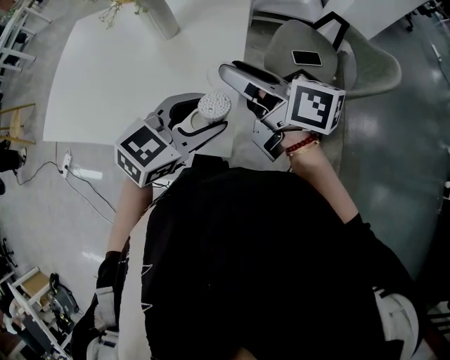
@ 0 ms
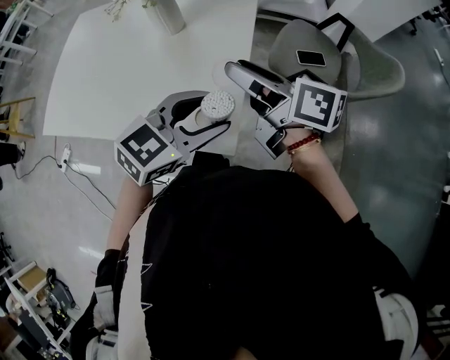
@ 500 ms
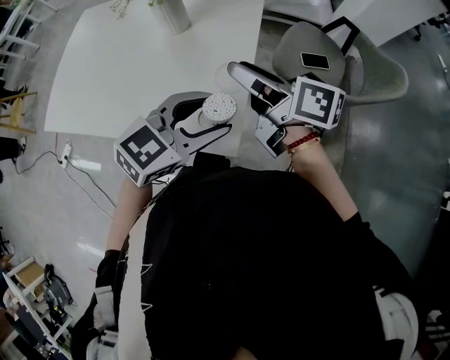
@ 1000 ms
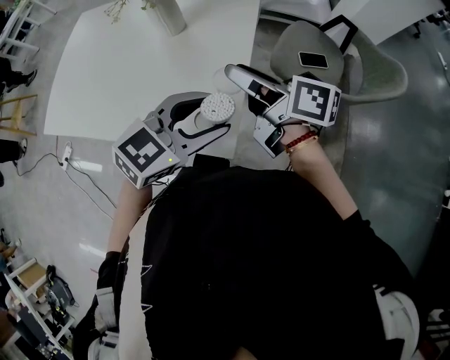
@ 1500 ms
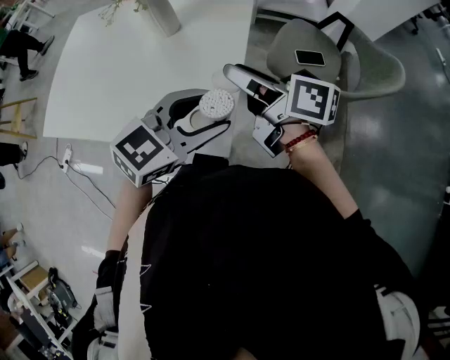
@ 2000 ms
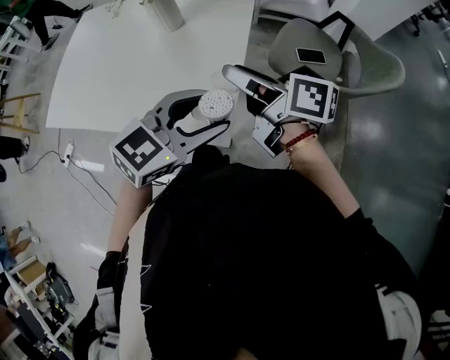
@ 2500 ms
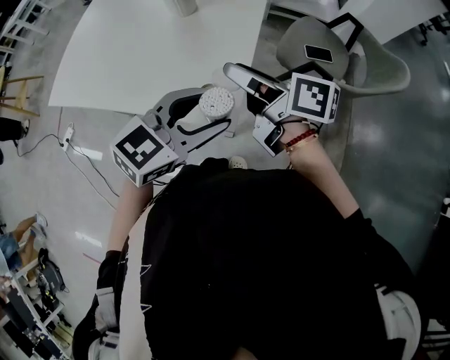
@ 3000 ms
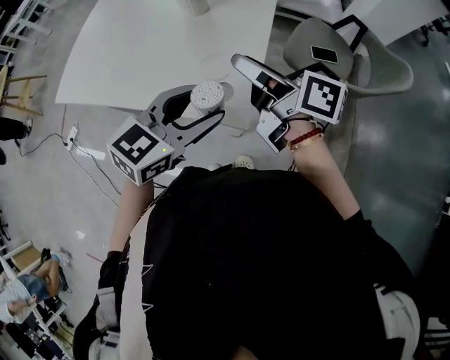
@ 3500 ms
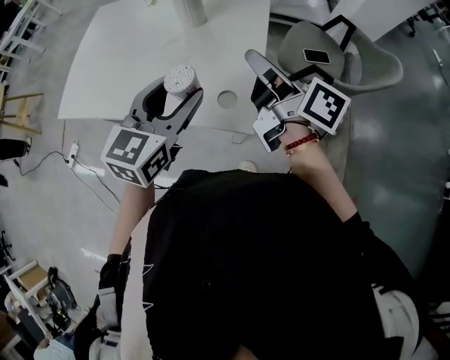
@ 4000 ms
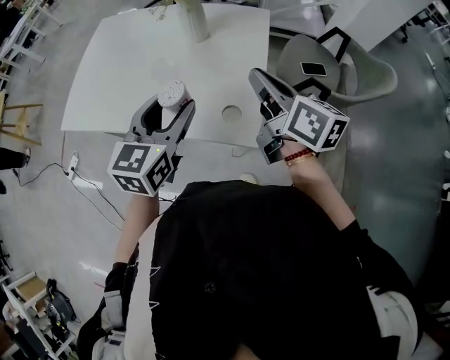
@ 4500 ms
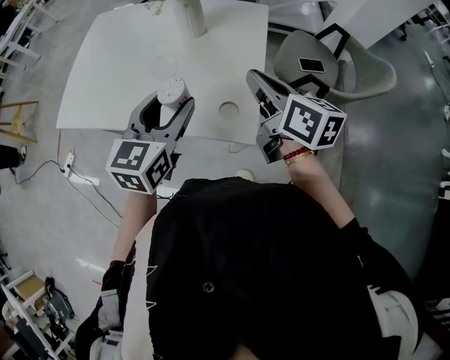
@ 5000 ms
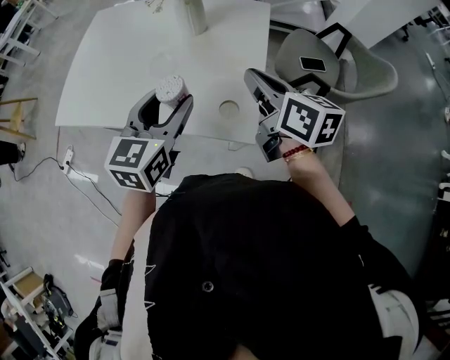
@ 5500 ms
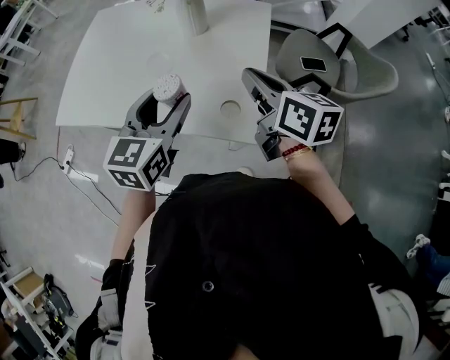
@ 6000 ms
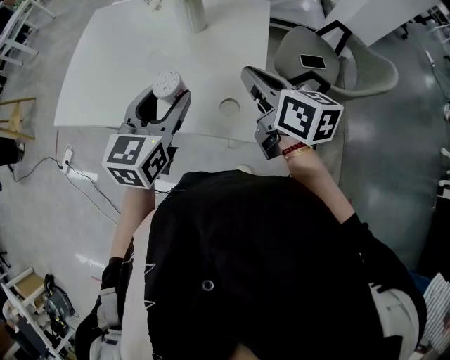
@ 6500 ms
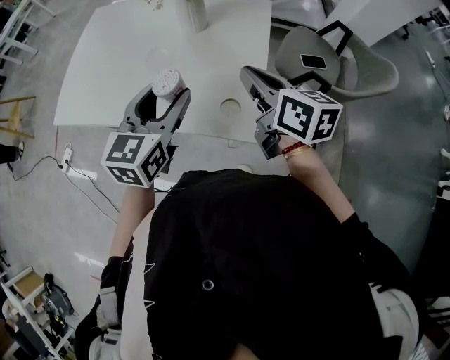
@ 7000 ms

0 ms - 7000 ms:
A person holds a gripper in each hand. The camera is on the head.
0 ms - 2000 ms: The grippers make only small movements.
2000 ms - 3500 ms: The left gripper moves to the left and backward, approximately 10 cm, while the right gripper heads backward, covering about 5 cm.
3500 ms - 5000 ms: The left gripper travels to the left and forward by roughly 10 cm, and rotates about 20 degrees. The right gripper turns by about 30 degrees, and closes up.
5000 ms - 7000 ms: The grippers move only a little.

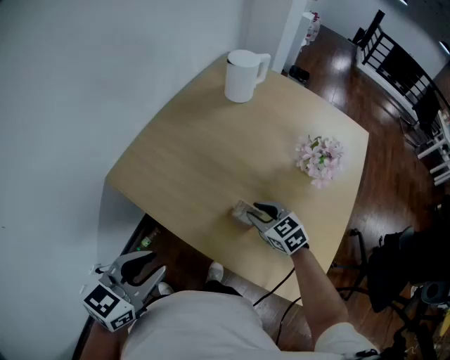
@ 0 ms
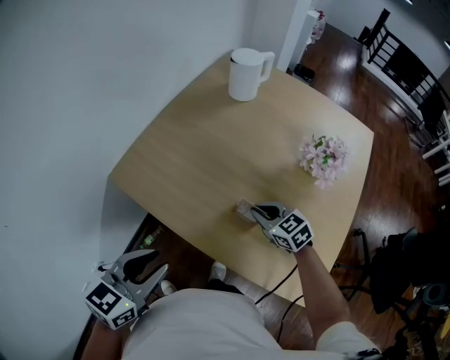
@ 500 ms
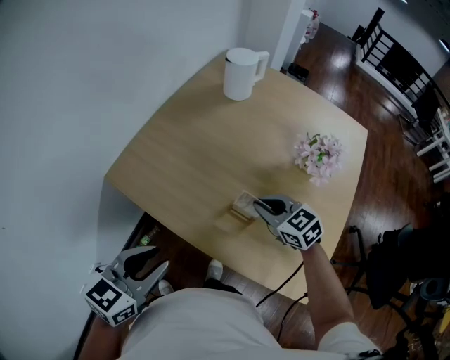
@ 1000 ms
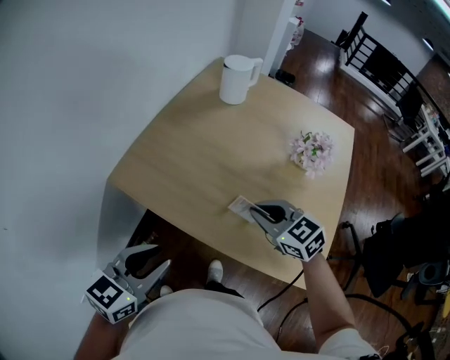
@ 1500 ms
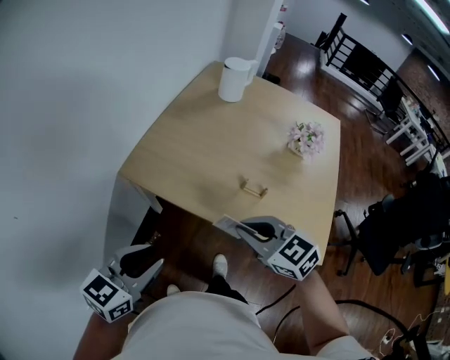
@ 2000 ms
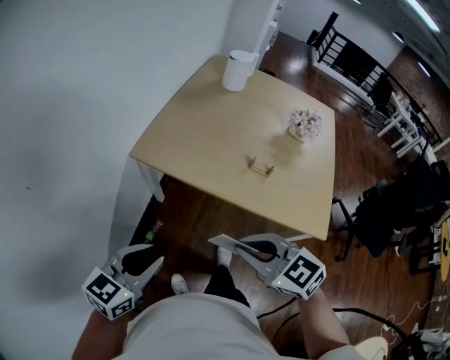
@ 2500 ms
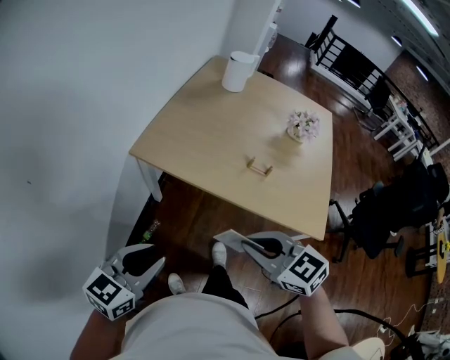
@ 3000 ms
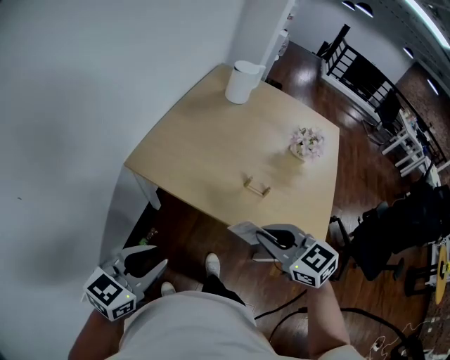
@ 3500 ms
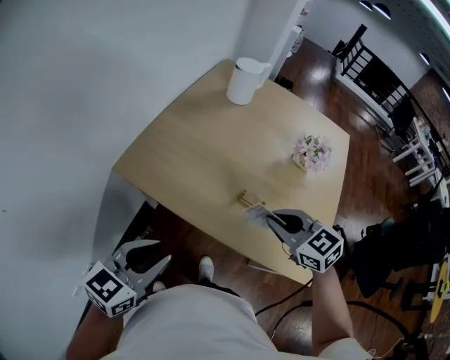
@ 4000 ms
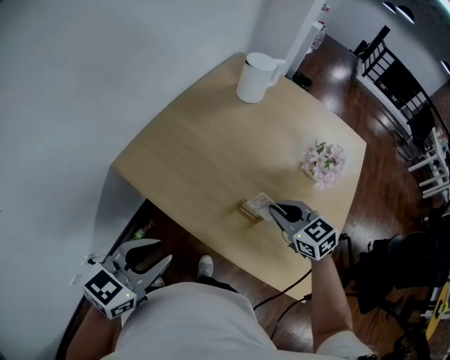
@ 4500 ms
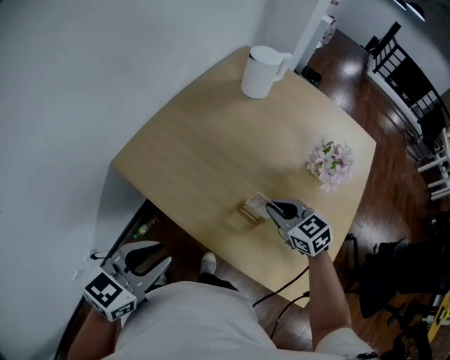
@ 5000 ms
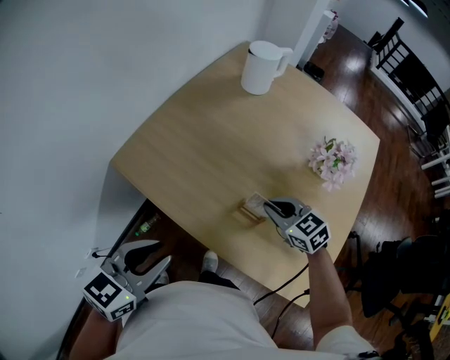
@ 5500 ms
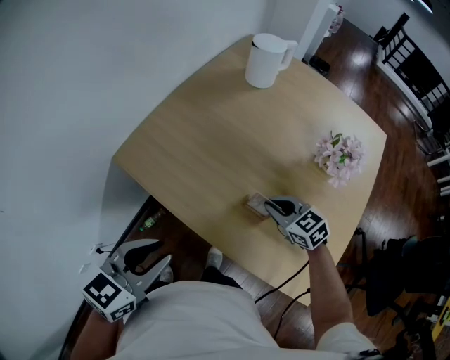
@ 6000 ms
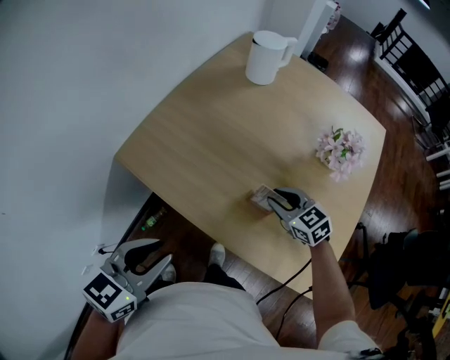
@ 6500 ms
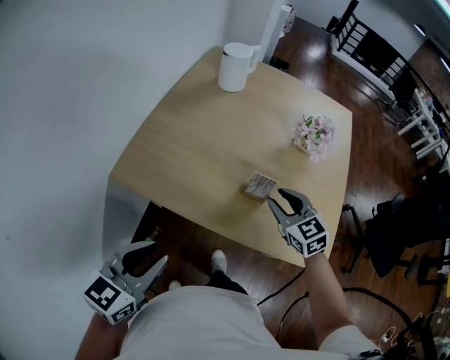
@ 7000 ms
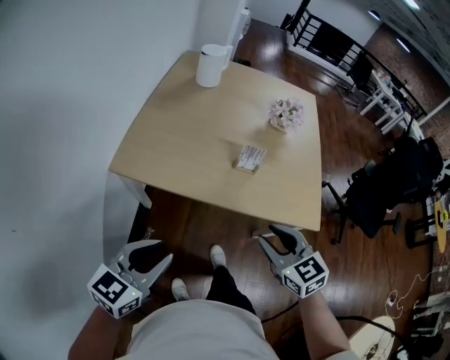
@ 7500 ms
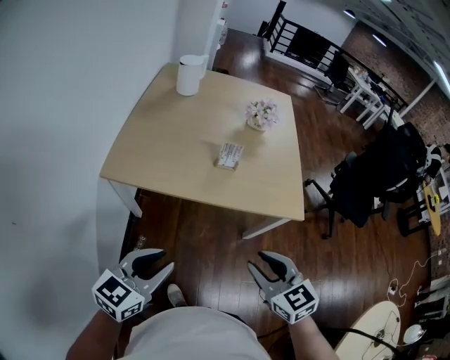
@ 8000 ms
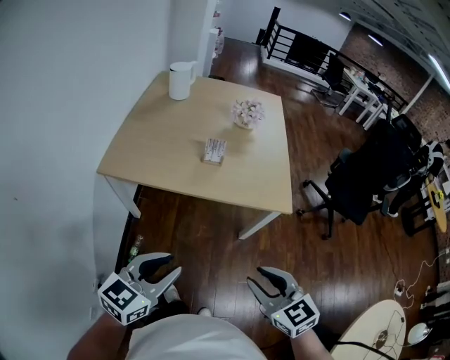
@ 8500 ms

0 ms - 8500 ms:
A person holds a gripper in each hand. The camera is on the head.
0 ms - 2000 ms: The right gripper shifts roughly 30 cm backward, upward and to the left, and closes up, while the left gripper is displaced to the left and backward by approximately 15 cm.
2000 ms - 4000 ms: The left gripper travels to the right by approximately 5 cm, while the right gripper is displaced to the right and forward by some 15 cm.
4000 ms - 6500 ms: The right gripper goes approximately 20 cm downward and forward. Meanwhile the left gripper ends up approximately 5 cm from where it was.
6500 ms - 8500 ms: The left gripper shifts by approximately 30 cm, and rotates some 30 degrees. Meanwhile the right gripper changes place by about 60 cm, and changes its angle by some 40 degrees.

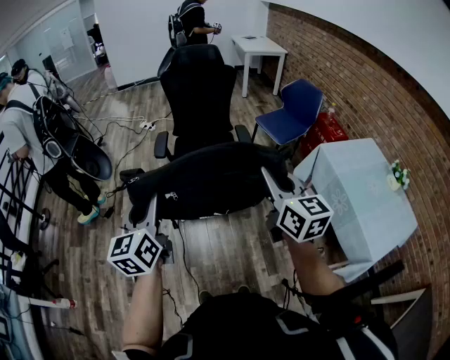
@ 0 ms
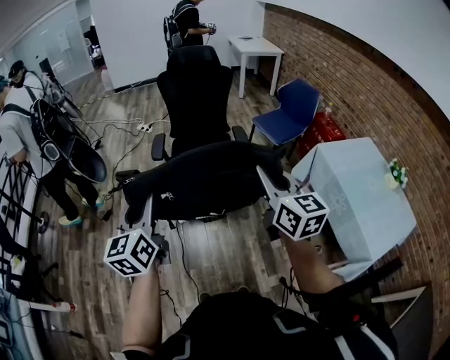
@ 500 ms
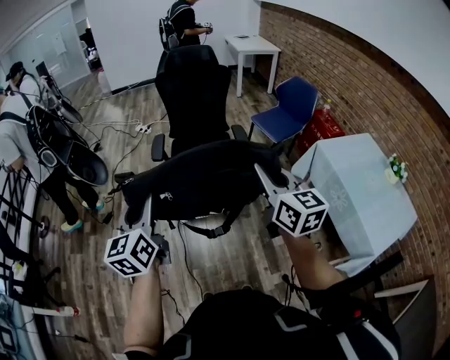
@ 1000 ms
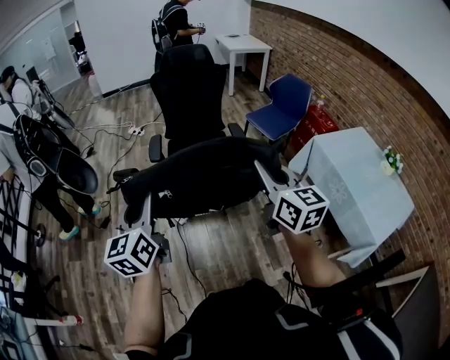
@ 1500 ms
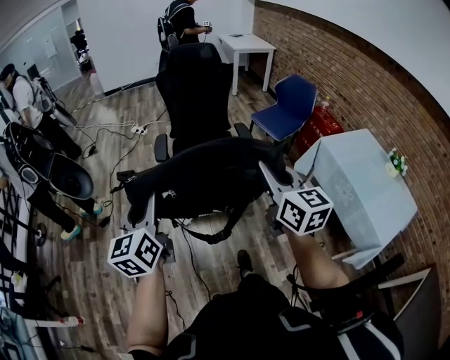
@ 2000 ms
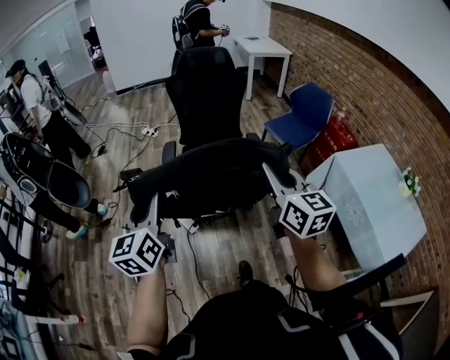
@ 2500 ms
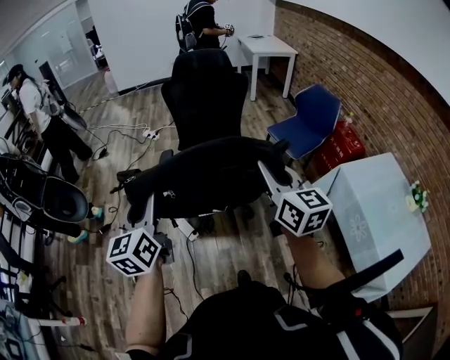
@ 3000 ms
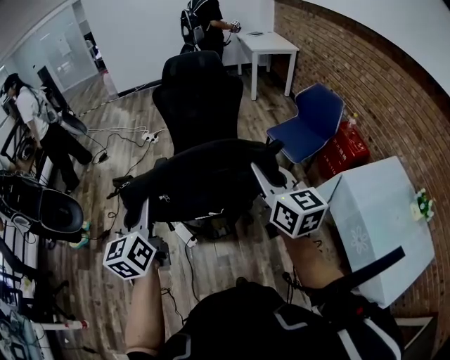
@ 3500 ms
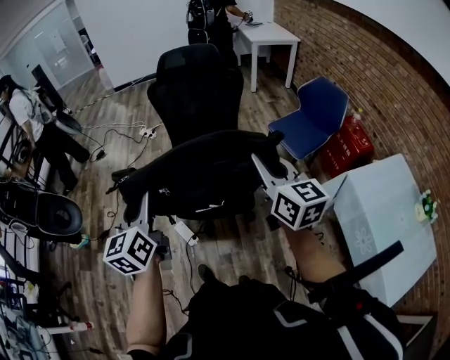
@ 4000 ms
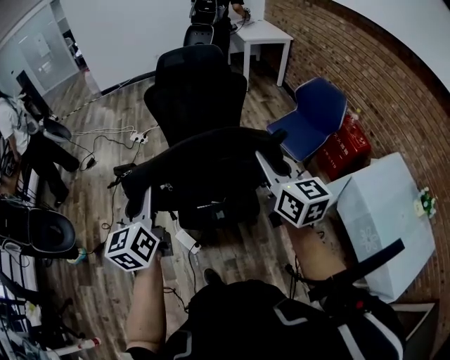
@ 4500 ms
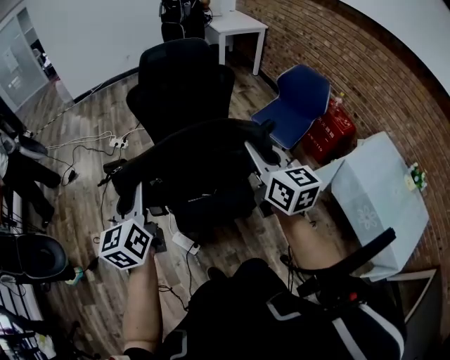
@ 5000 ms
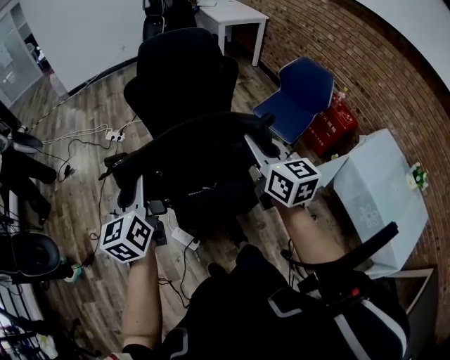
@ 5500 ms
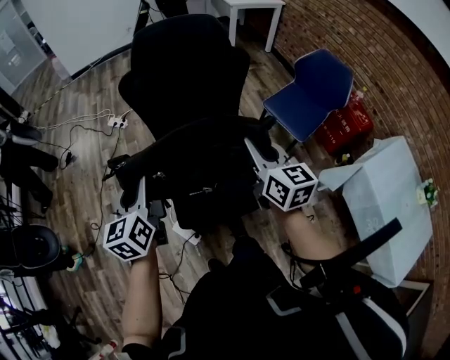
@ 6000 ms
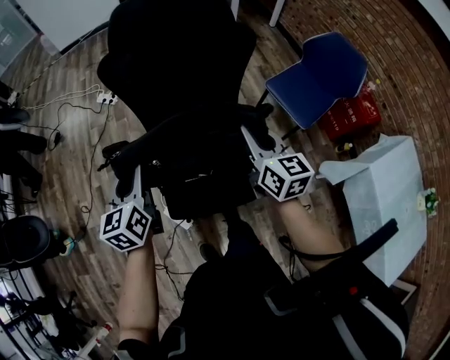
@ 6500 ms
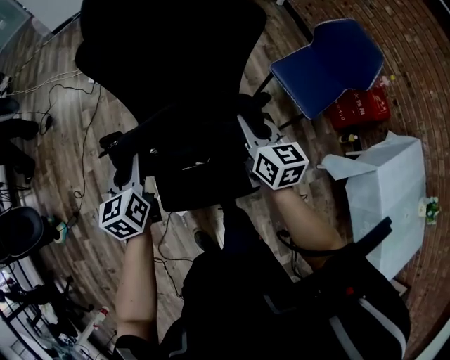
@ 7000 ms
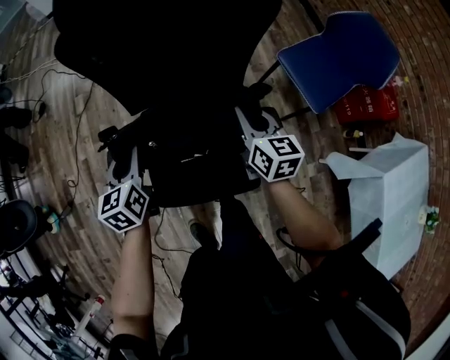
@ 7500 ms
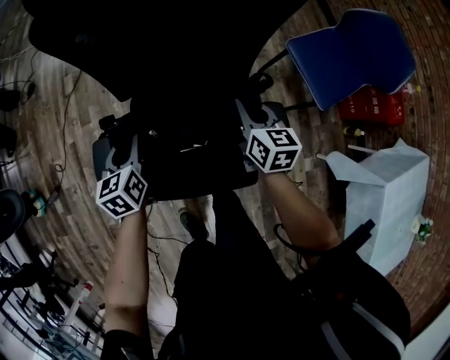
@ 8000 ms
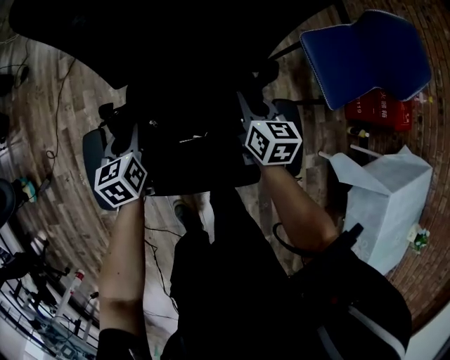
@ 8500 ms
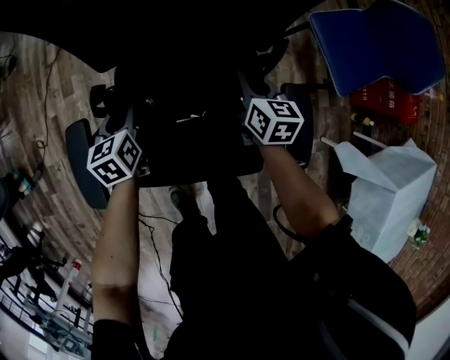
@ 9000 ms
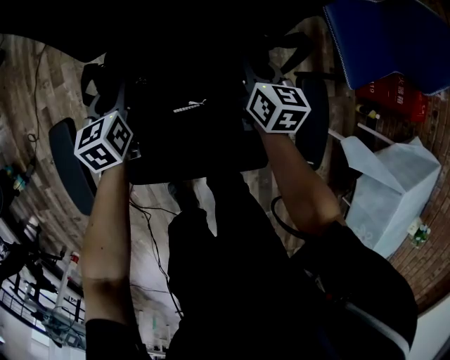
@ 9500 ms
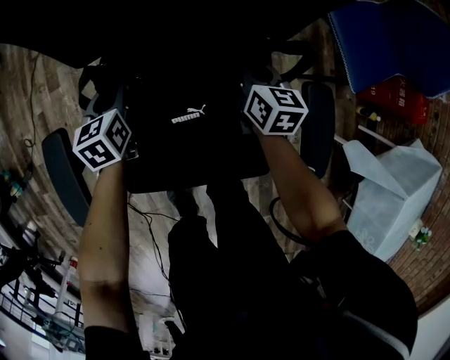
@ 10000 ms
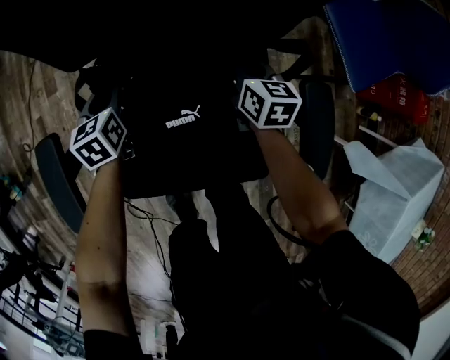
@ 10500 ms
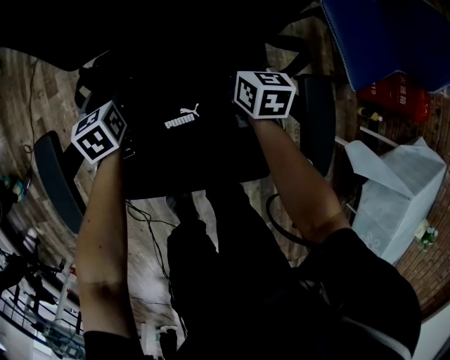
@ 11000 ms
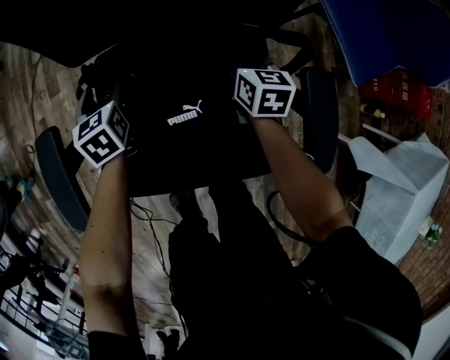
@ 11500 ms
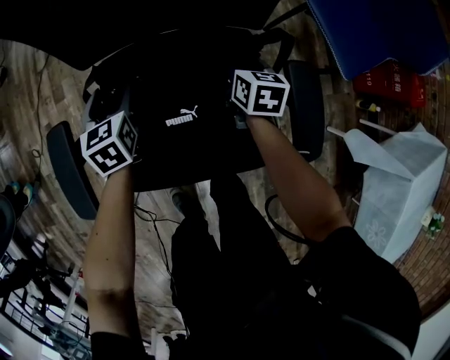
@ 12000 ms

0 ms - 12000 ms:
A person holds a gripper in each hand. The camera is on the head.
0 ms - 2000 ms: The two grippers go some 5 cm to the left.
2000 ms - 4000 ms: Both grippers travel together forward and to the right, about 30 cm.
4000 ms - 6000 ms: The left gripper moves forward, some 25 cm; the right gripper moves forward and downward, some 25 cm.
6000 ms - 8000 ms: The grippers both shift downward and forward by approximately 35 cm. The left gripper rotates some 20 degrees.
8000 ms - 10000 ms: Both grippers travel together downward, roughly 20 cm.
10000 ms - 12000 ms: The right gripper opens its fingers, while the left gripper is displaced upward by about 5 cm, and opens up.
